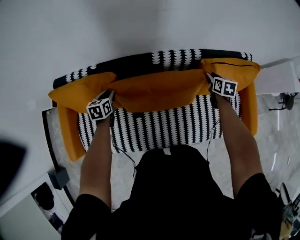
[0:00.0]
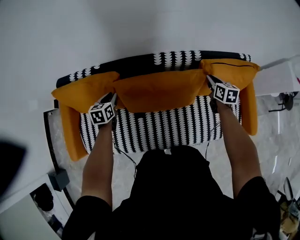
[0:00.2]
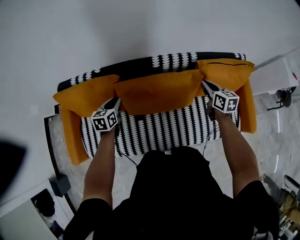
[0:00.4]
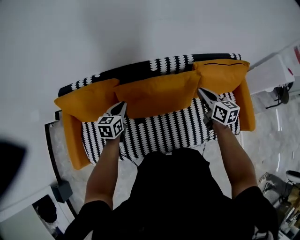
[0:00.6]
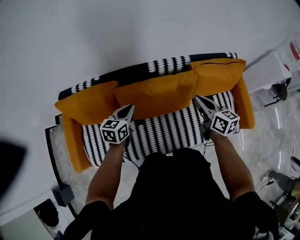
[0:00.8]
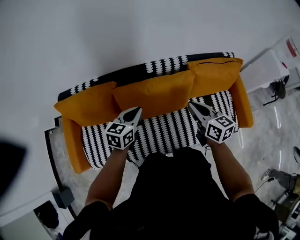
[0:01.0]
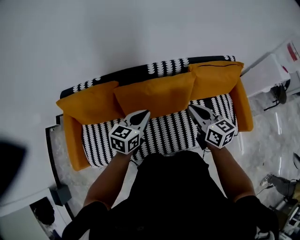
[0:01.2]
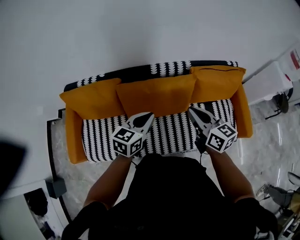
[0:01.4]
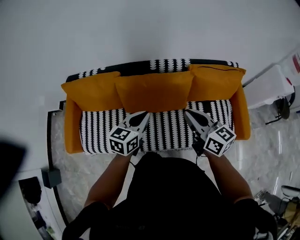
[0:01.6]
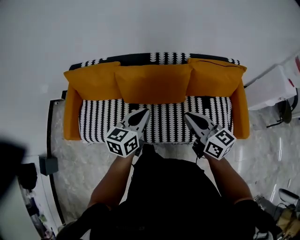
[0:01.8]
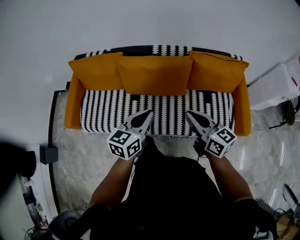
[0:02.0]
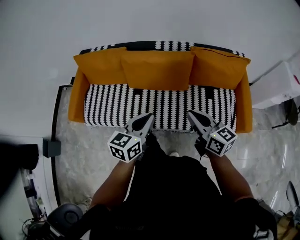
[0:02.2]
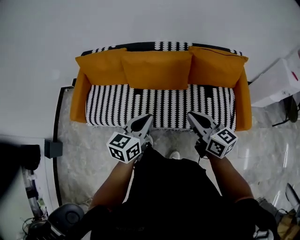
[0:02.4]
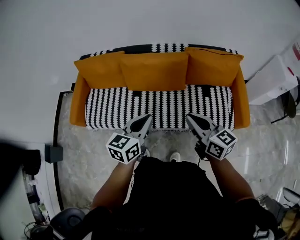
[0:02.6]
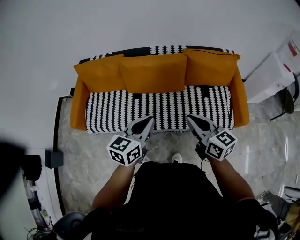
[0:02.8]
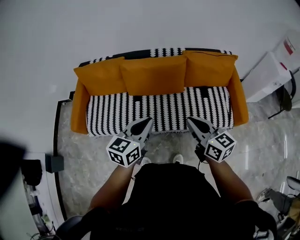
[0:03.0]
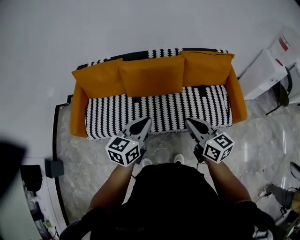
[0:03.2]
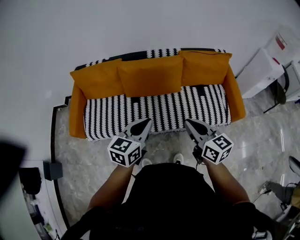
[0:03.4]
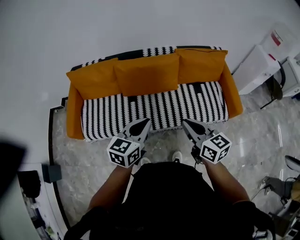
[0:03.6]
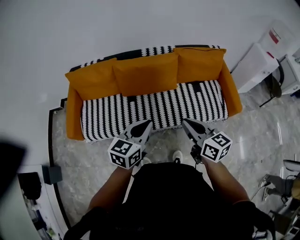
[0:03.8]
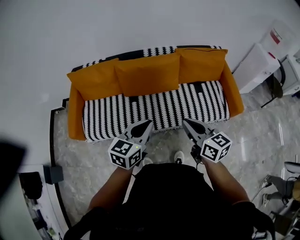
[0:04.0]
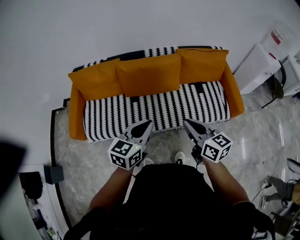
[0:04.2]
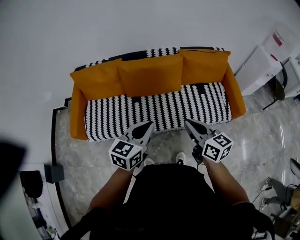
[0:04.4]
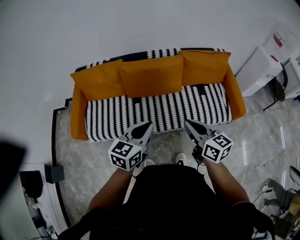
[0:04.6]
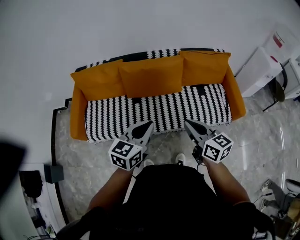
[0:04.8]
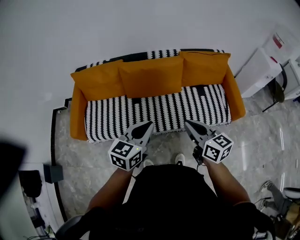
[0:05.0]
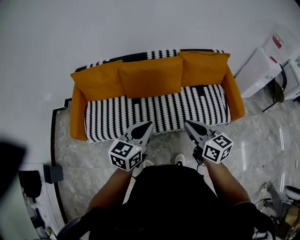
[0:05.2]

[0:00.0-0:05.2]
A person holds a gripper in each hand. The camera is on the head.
0:00.0 to 0:01.8: The right gripper is displaced backward and upward by some 40 cm, tips its fingers upward by roughly 40 degrees, and closes. Meanwhile the left gripper goes approximately 50 cm to the right, backward and upward, swivels about 30 degrees, and closes its fingers.
0:01.8 to 0:03.4: The two grippers go approximately 20 cm backward.
0:03.4 to 0:05.2: The grippers make only small movements.

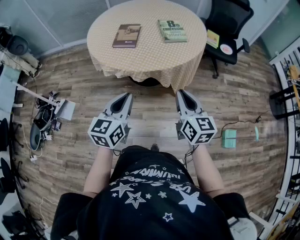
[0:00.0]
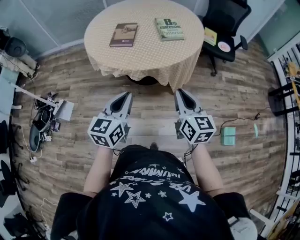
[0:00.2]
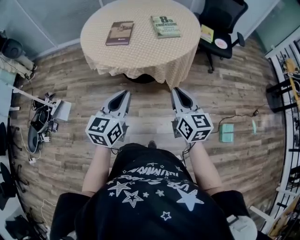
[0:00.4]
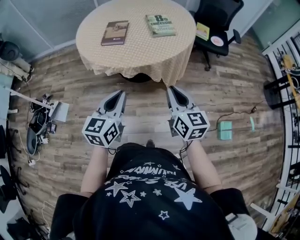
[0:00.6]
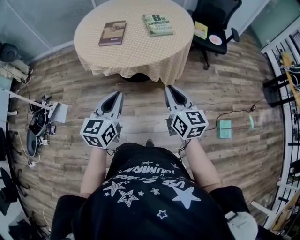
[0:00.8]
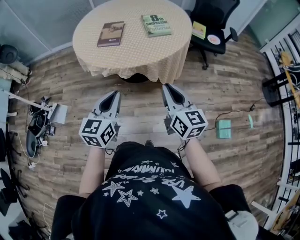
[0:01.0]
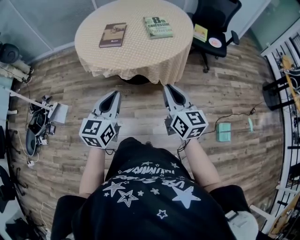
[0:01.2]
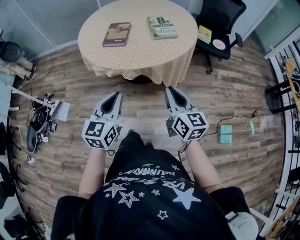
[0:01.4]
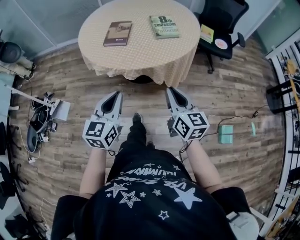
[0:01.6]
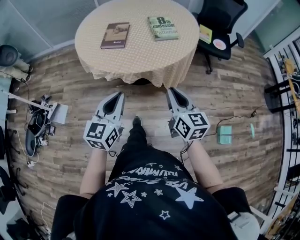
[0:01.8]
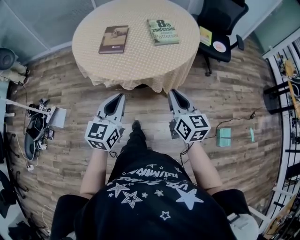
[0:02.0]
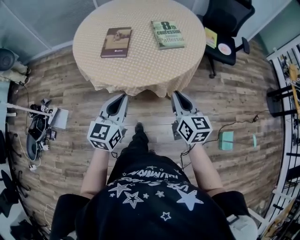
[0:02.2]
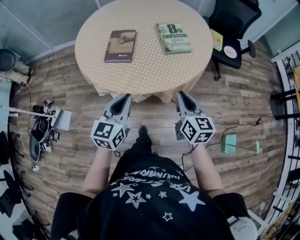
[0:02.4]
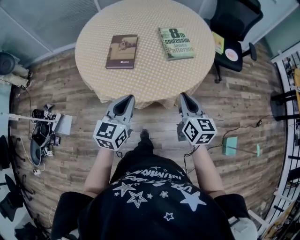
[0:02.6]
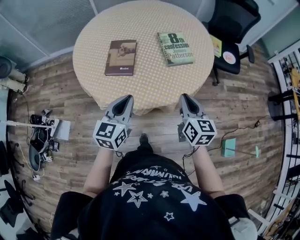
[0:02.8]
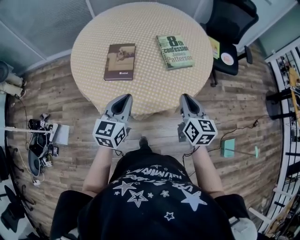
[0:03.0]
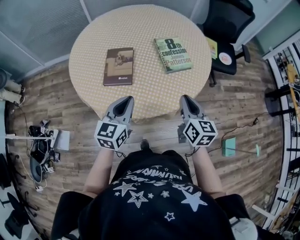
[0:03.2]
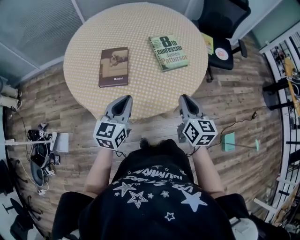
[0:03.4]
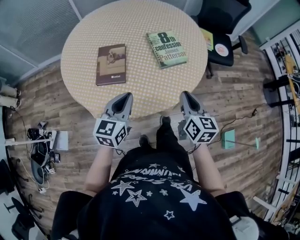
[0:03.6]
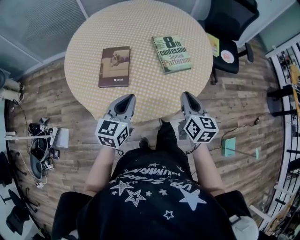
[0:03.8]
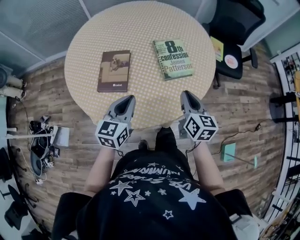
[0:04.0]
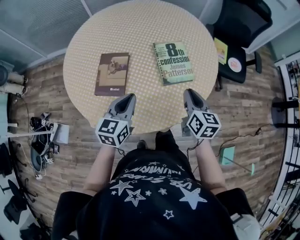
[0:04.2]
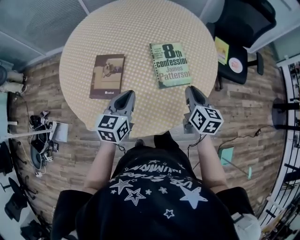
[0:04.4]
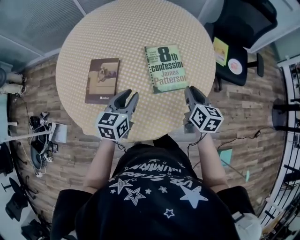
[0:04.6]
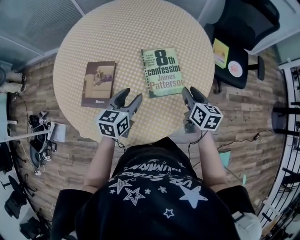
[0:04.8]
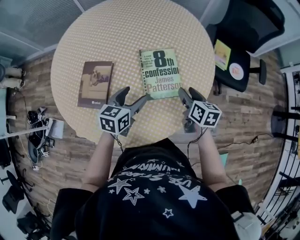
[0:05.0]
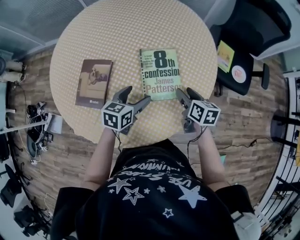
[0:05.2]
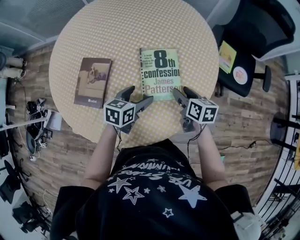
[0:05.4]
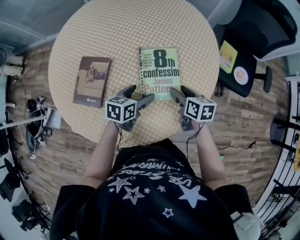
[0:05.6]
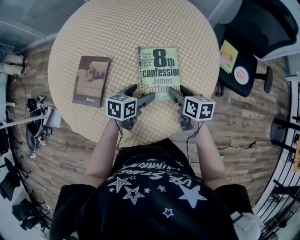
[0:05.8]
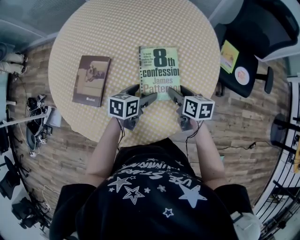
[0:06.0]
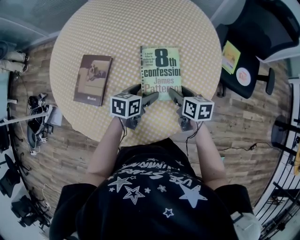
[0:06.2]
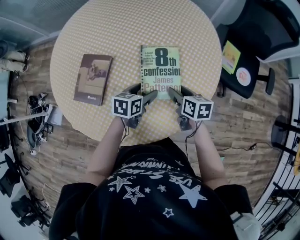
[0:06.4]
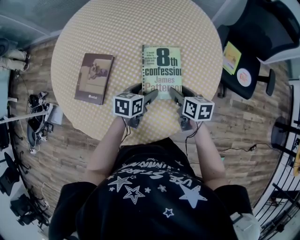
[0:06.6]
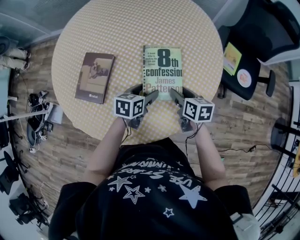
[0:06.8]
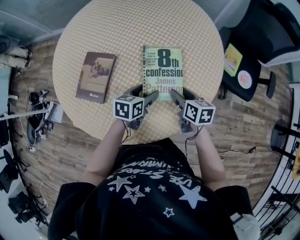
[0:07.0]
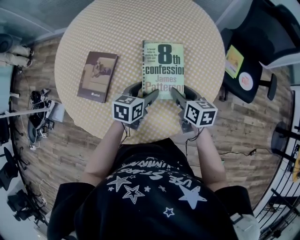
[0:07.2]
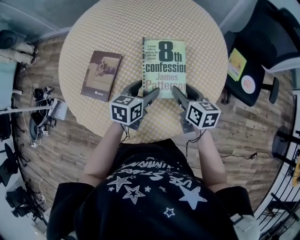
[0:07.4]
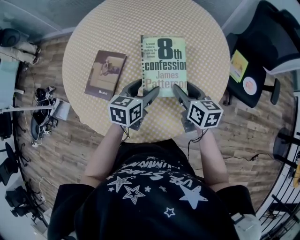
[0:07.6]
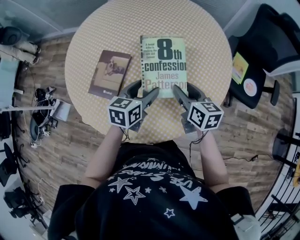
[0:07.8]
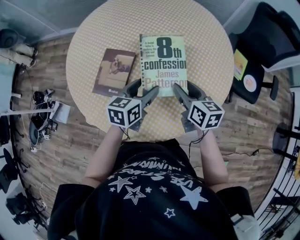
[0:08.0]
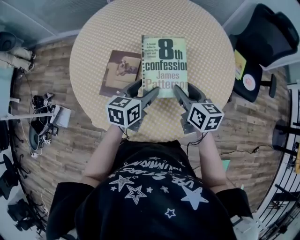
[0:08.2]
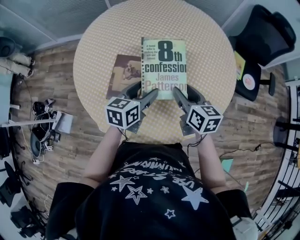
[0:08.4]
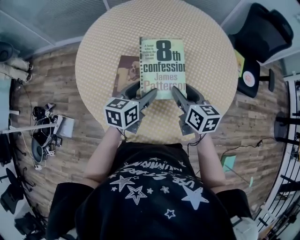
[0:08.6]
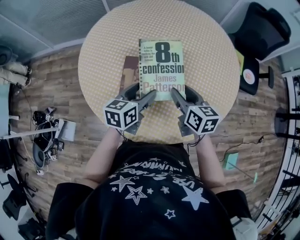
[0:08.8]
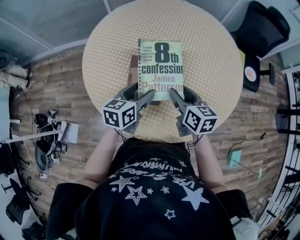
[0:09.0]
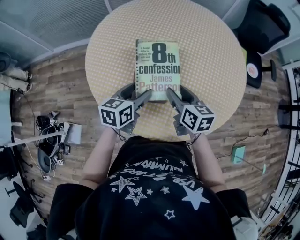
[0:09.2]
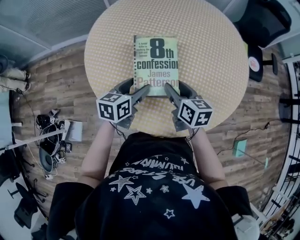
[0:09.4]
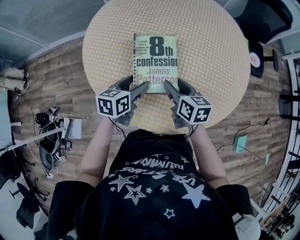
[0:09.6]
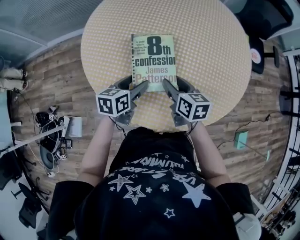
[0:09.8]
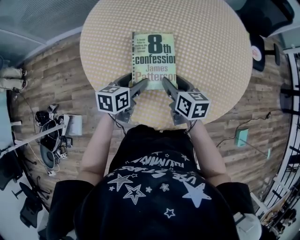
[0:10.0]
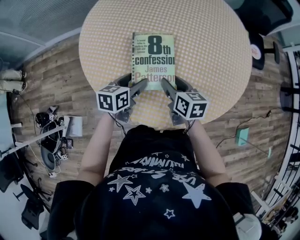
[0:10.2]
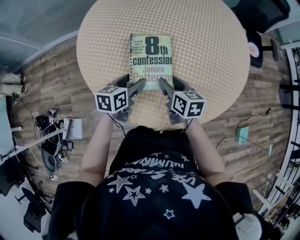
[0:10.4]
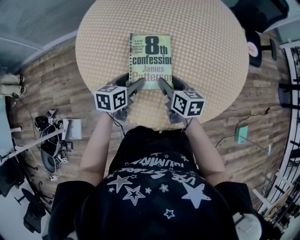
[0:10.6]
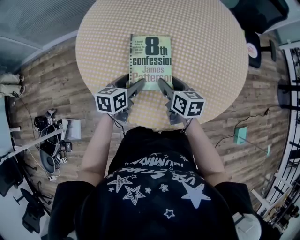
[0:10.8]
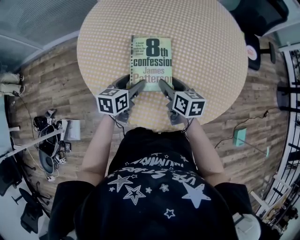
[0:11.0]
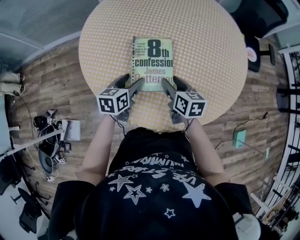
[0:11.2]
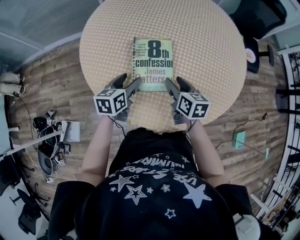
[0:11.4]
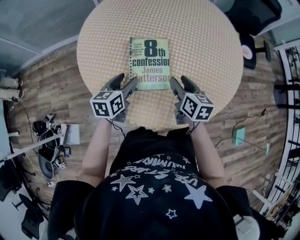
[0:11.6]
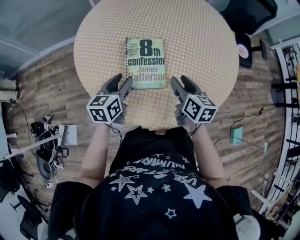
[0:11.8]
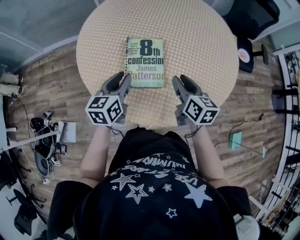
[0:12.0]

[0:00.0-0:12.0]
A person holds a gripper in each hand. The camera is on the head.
0:00.0 to 0:01.6: The grippers stay close to where they were, moving slightly.
0:01.6 to 0:03.0: The two grippers go roughly 25 cm forward.
0:03.0 to 0:04.4: The grippers both shift forward by approximately 20 cm.
0:04.4 to 0:06.0: The left gripper shifts roughly 20 cm downward, to the right and forward, changes its angle by roughly 30 degrees, and opens. Meanwhile the right gripper goes about 15 cm downward and forward, changes its angle by about 30 degrees, and opens its fingers.
0:06.0 to 0:07.6: The grippers both shift upward by about 10 cm.
0:07.6 to 0:09.0: Both grippers travel together to the left, approximately 25 cm.
0:09.0 to 0:10.4: The two grippers go about 10 cm downward and to the left.
0:10.4 to 0:12.0: The right gripper is displaced upward and to the right by about 10 cm. The left gripper shifts some 10 cm upward, rotates roughly 20 degrees, and closes.

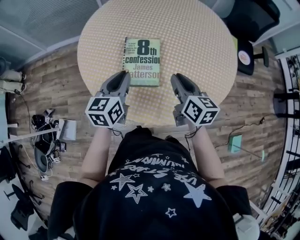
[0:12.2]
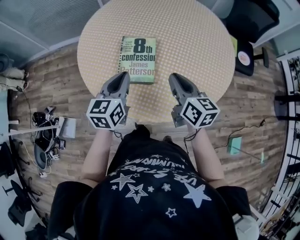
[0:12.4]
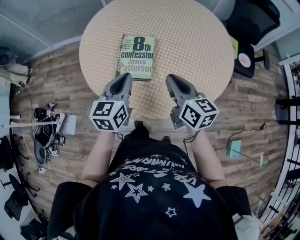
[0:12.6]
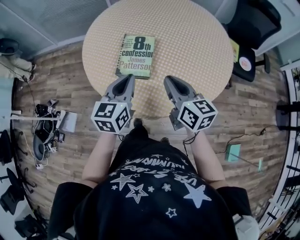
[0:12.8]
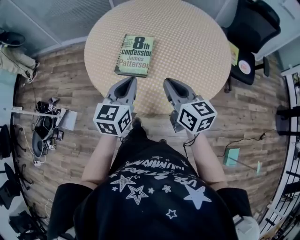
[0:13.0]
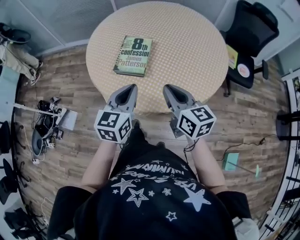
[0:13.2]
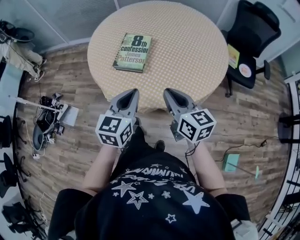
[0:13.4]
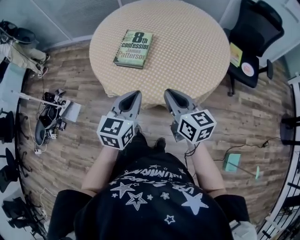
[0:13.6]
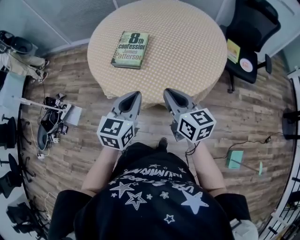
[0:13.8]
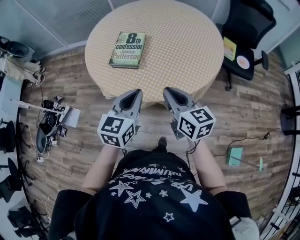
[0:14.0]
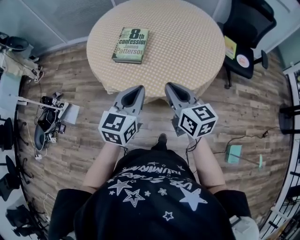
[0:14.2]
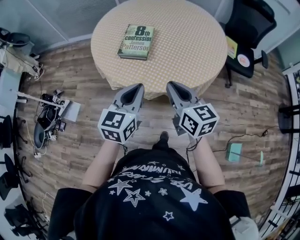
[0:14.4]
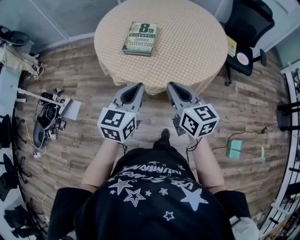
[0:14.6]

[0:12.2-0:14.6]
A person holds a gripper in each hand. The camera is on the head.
0:12.2 to 0:13.4: The left gripper heads backward and to the right, covering roughly 25 cm. Meanwhile the right gripper heads backward, covering some 20 cm, and turns by some 20 degrees.
0:13.4 to 0:14.6: The grippers both shift backward and to the left by roughly 10 cm.

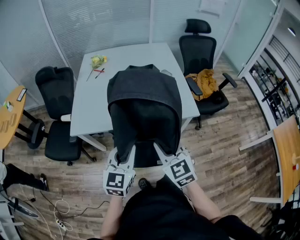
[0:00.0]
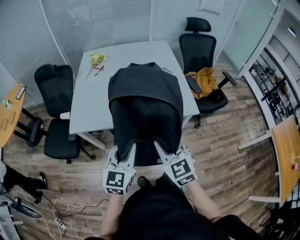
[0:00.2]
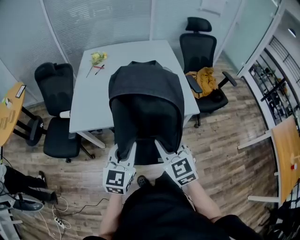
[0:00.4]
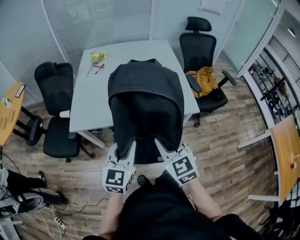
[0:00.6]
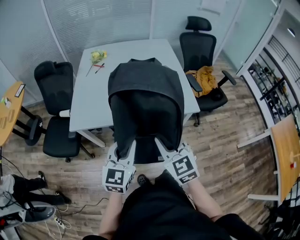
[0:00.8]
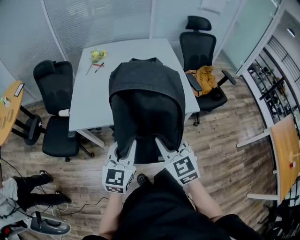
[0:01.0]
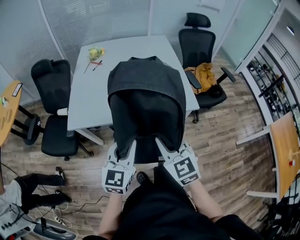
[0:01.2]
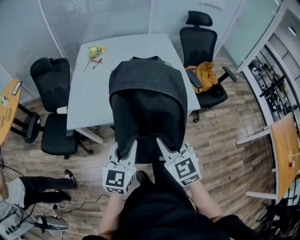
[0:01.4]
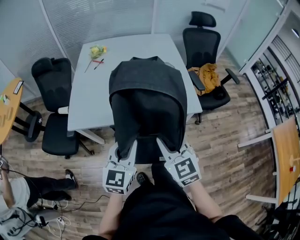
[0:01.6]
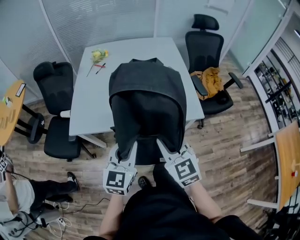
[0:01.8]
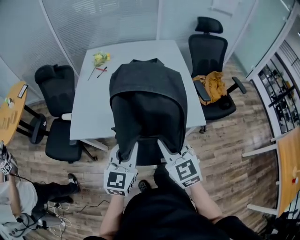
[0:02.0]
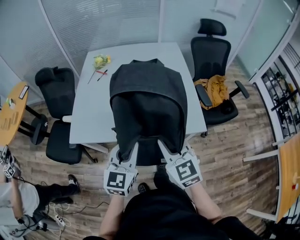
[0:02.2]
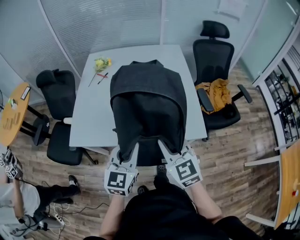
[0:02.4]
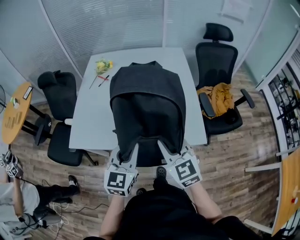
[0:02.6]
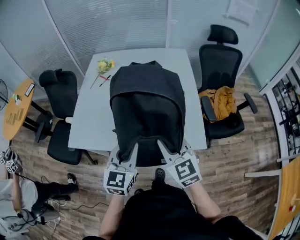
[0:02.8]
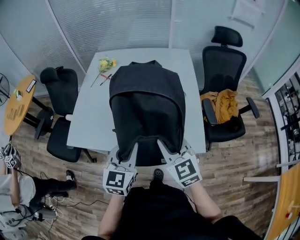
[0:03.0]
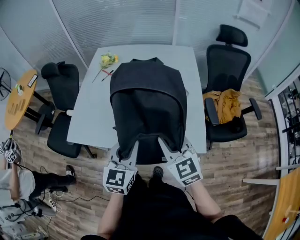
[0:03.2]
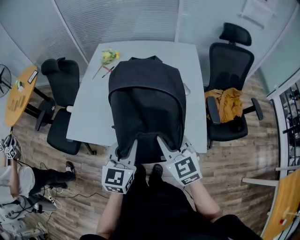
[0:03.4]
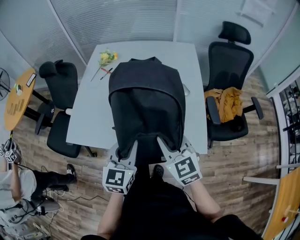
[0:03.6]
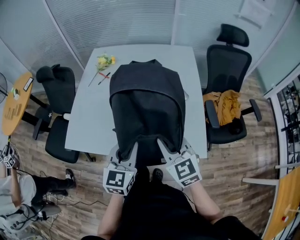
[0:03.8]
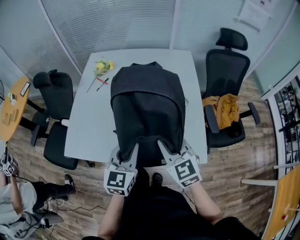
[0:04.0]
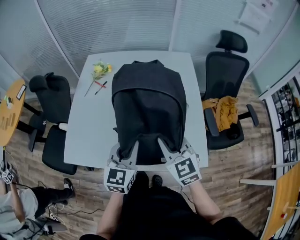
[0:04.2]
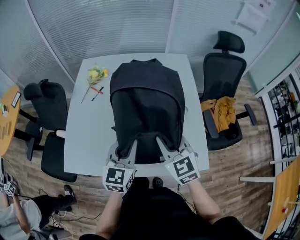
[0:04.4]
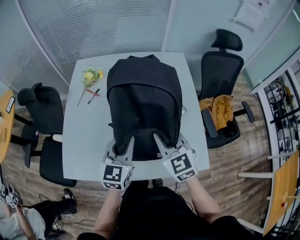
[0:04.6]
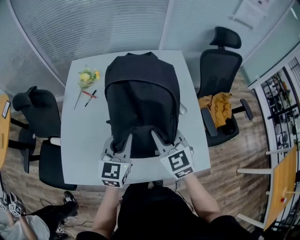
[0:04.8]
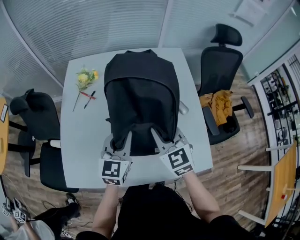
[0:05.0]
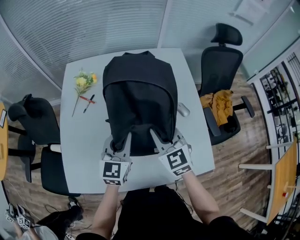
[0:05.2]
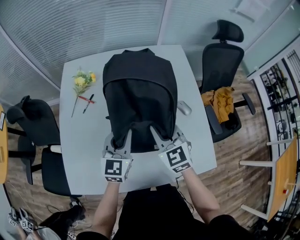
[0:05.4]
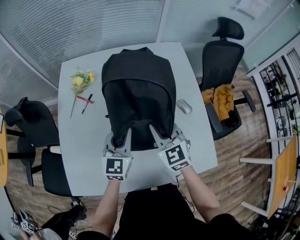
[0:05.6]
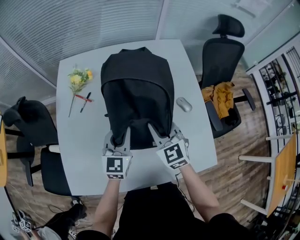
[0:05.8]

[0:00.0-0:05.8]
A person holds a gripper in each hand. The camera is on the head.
0:00.0 to 0:01.4: The grippers stay close to where they were, moving slightly.
0:01.4 to 0:02.8: The grippers both shift forward and to the right by roughly 20 cm.
0:02.8 to 0:04.4: The grippers both shift forward by approximately 20 cm.
0:04.4 to 0:05.8: The two grippers go some 20 cm forward and downward.
